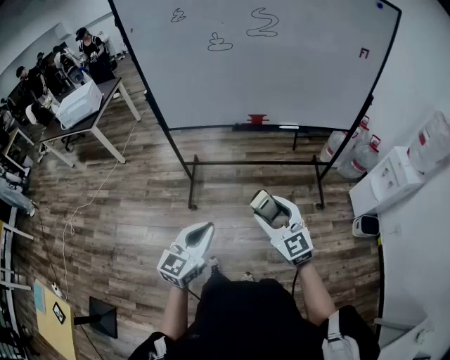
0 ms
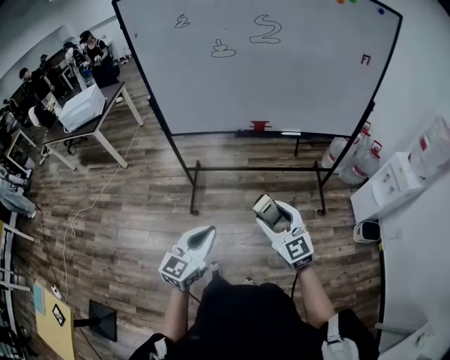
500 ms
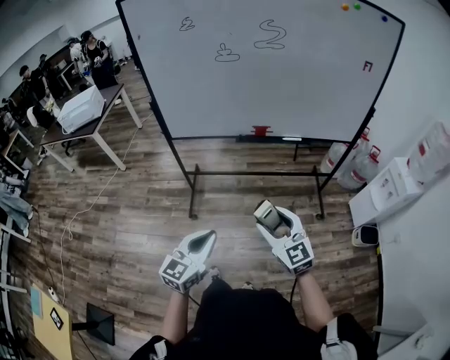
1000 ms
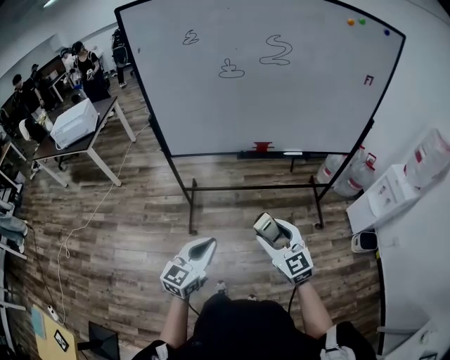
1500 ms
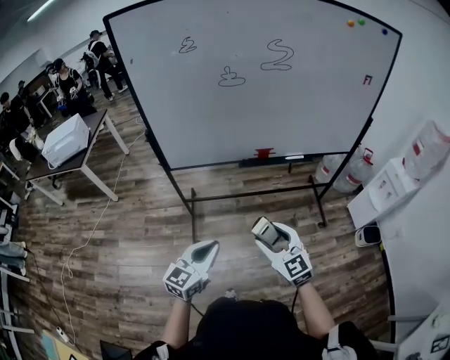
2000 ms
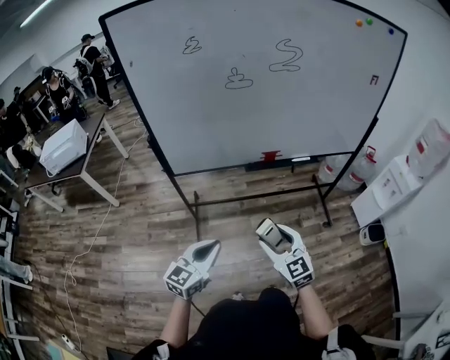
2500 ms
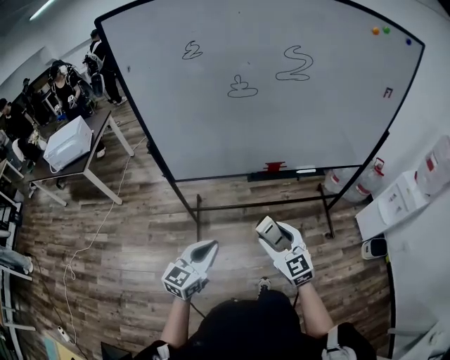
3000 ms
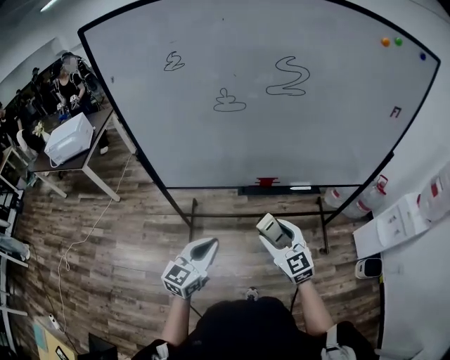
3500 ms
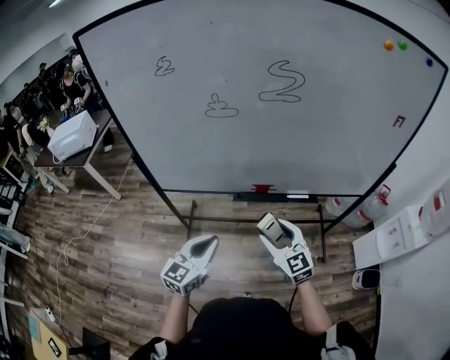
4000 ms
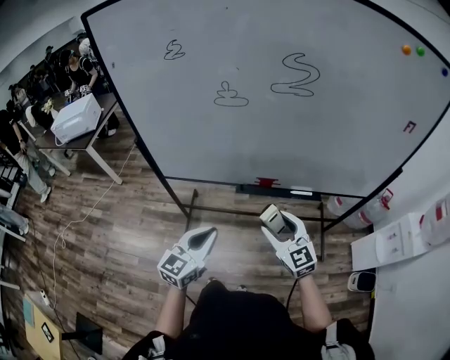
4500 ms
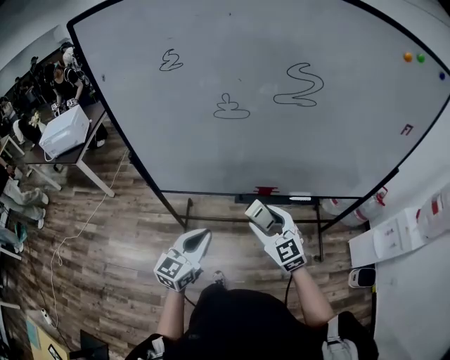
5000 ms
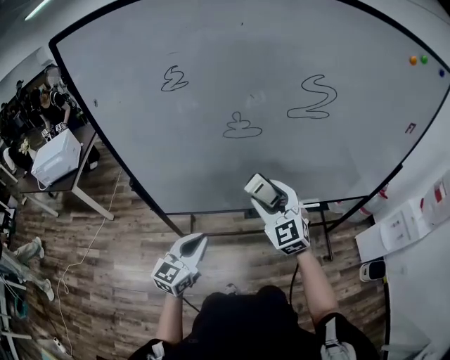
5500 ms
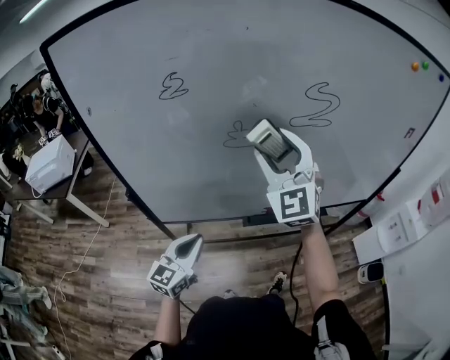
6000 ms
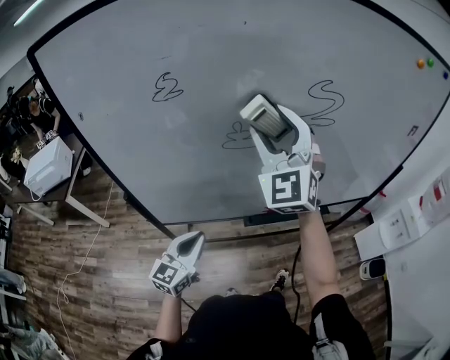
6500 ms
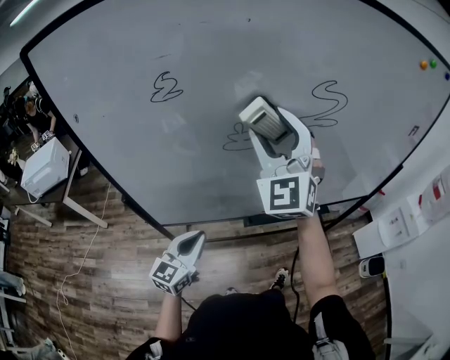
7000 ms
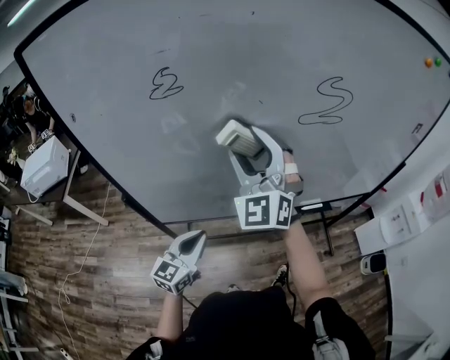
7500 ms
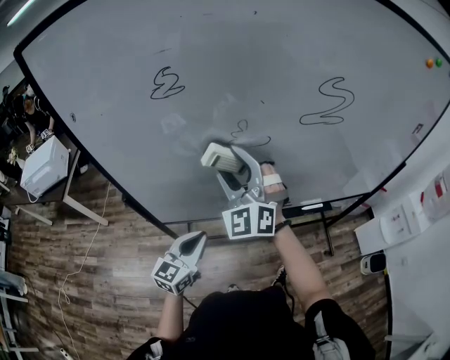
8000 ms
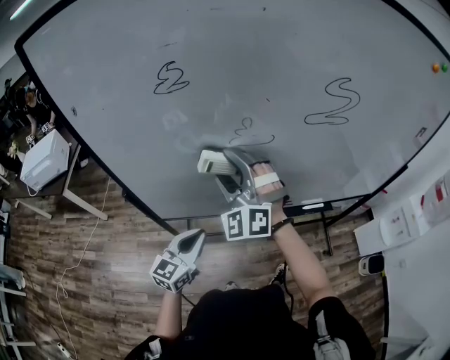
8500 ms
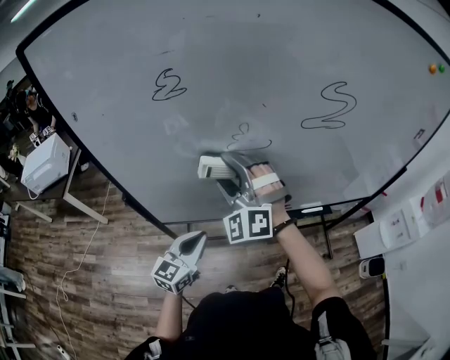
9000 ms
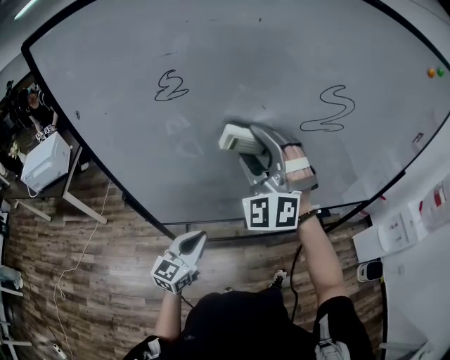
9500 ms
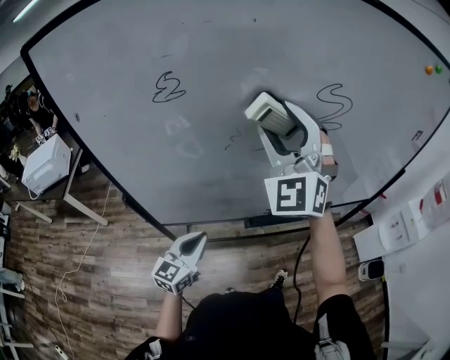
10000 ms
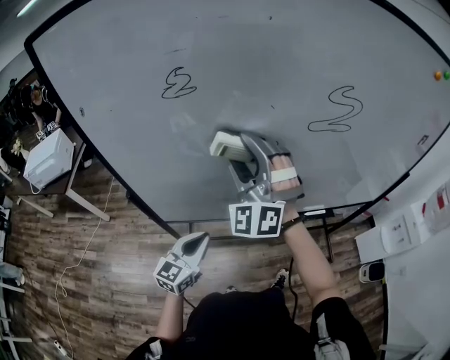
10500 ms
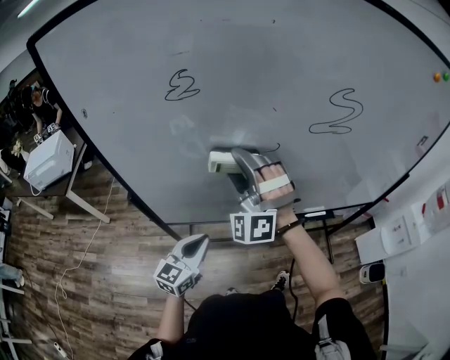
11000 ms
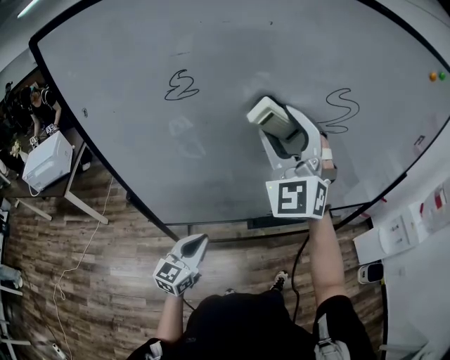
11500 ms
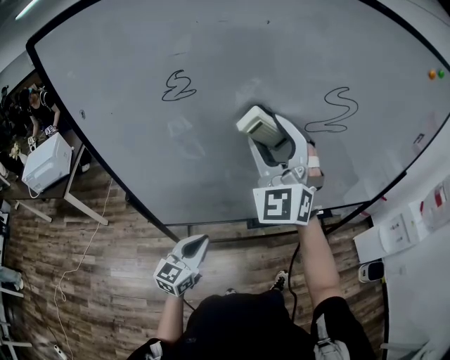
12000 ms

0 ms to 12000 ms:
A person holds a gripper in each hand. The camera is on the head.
0 ms to 2000 ms: The right gripper travels to the left and forward by about 15 cm. The left gripper goes roughly 15 cm forward and to the left.
2000 ms to 4000 ms: The two grippers go roughly 25 cm forward and to the right.
4000 ms to 6000 ms: The right gripper heads upward, forward and to the left, covering about 35 cm, and rotates some 40 degrees. The left gripper shifts about 20 cm forward and to the left.
6000 ms to 8000 ms: The right gripper travels to the left and downward by roughly 15 cm.
8000 ms to 10000 ms: The right gripper heads upward and to the right, covering roughly 15 cm.
10000 ms to 12000 ms: The right gripper moves roughly 15 cm downward and comes back.

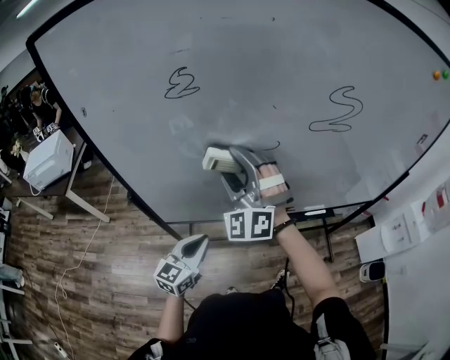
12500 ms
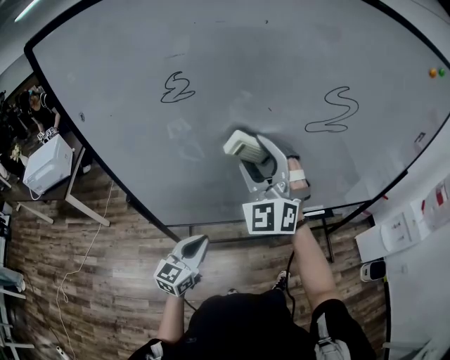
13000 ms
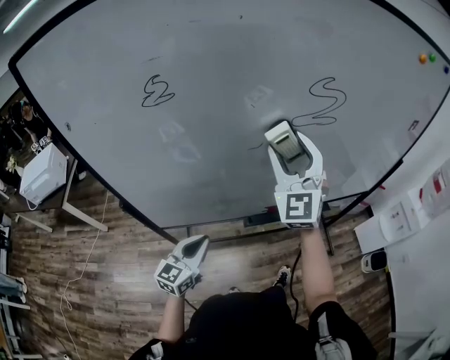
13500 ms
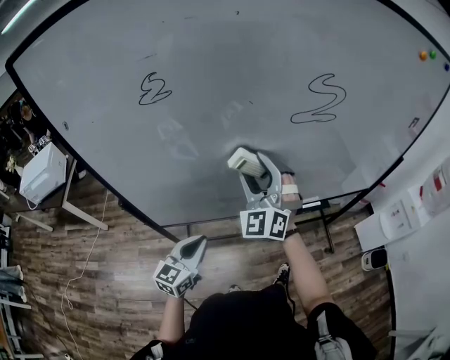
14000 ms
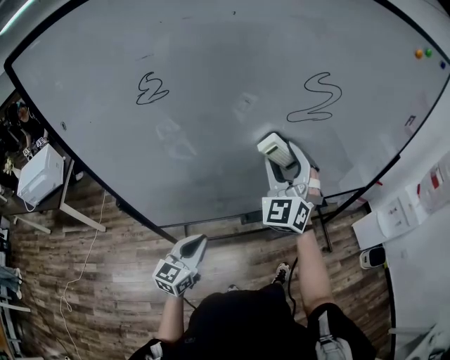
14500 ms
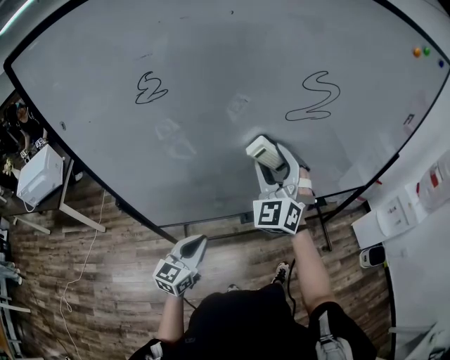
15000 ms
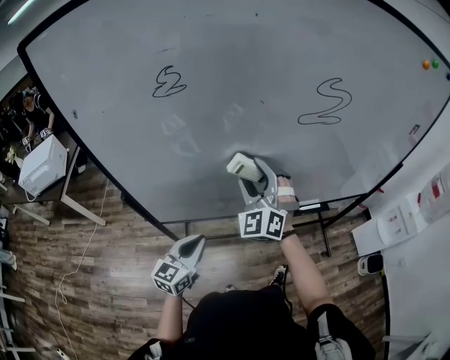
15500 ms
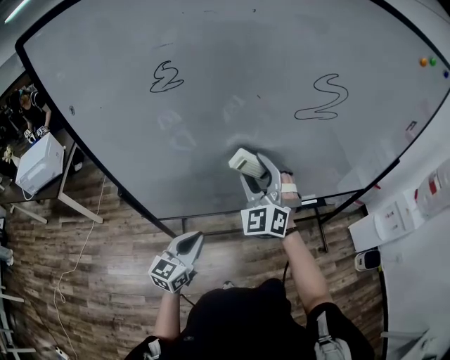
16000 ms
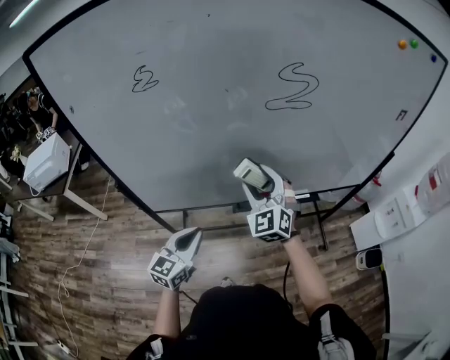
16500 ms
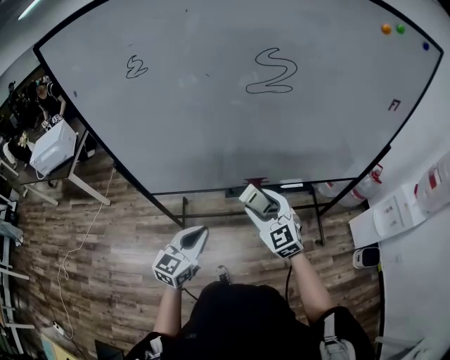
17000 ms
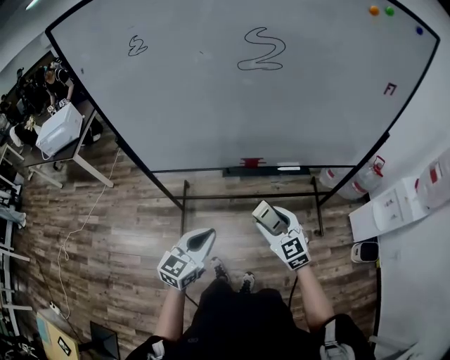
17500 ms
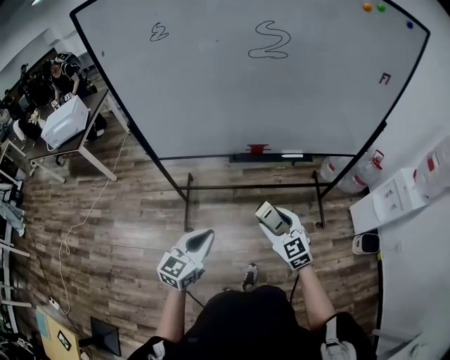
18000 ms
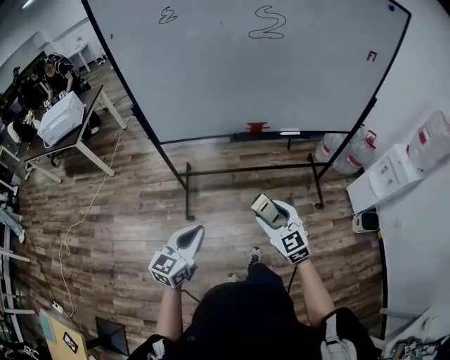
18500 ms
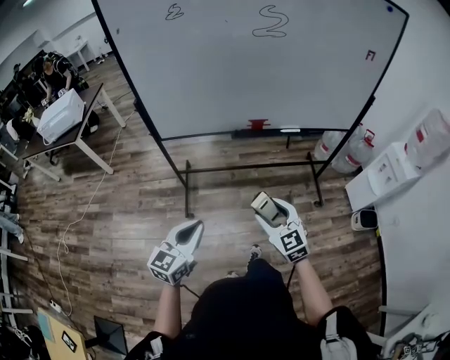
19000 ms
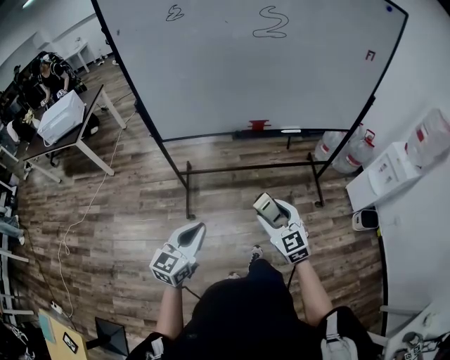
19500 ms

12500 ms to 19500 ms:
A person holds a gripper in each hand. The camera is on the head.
12500 ms to 14500 ms: The right gripper goes left and right, about 15 cm each way, reversing 2 times, and turns by approximately 30 degrees.
14500 ms to 16000 ms: The right gripper goes some 10 cm to the left.
16000 ms to 17500 ms: The right gripper shifts roughly 40 cm backward, to the right and downward, and changes its angle by approximately 50 degrees. The left gripper shifts about 25 cm to the right and backward.
17500 ms to 19500 ms: The grippers both shift backward and to the left by roughly 20 cm.

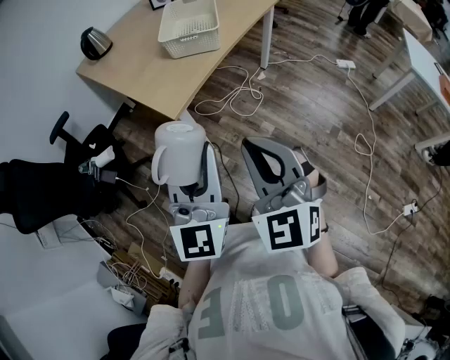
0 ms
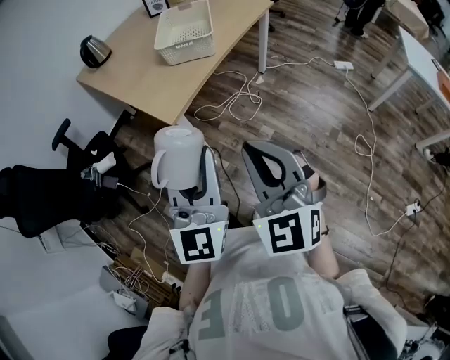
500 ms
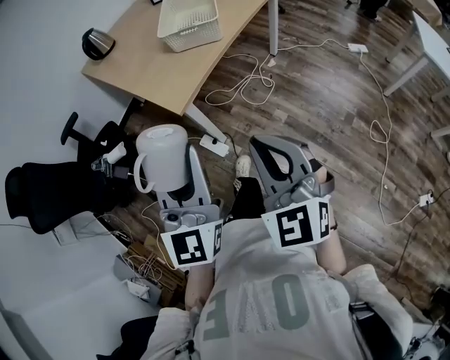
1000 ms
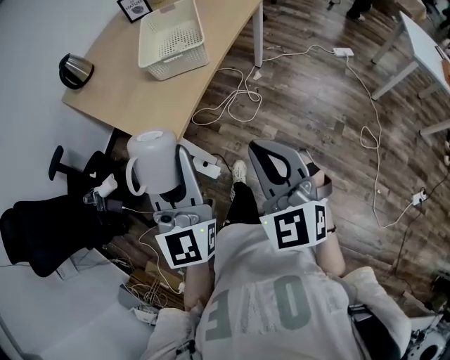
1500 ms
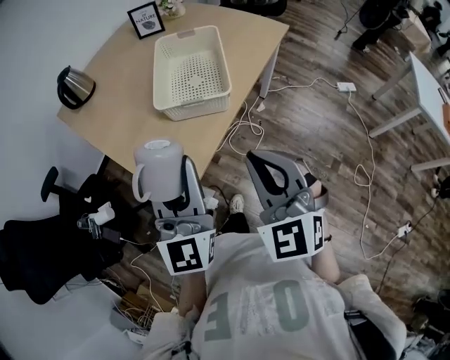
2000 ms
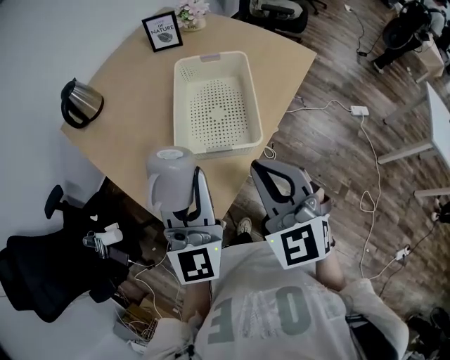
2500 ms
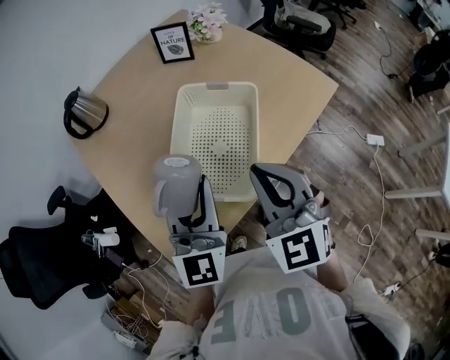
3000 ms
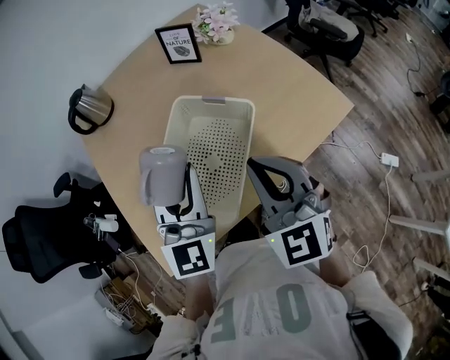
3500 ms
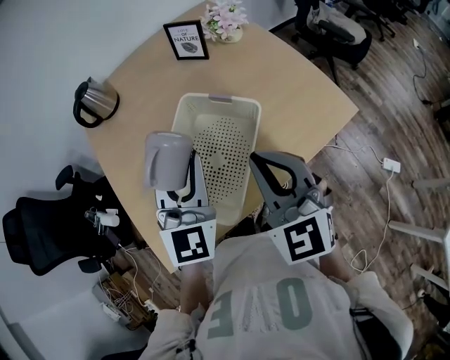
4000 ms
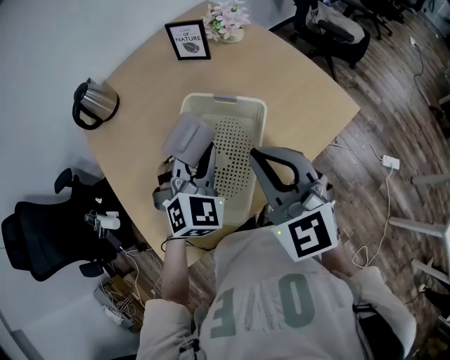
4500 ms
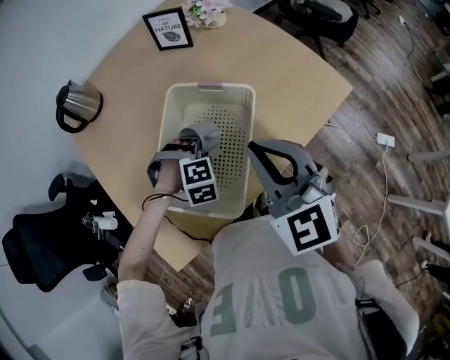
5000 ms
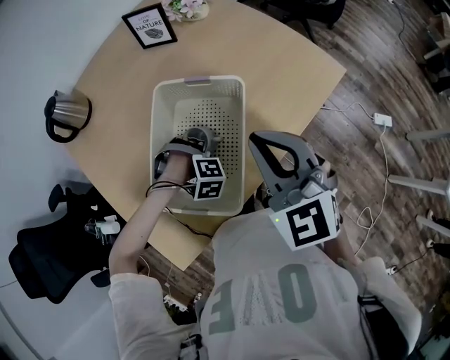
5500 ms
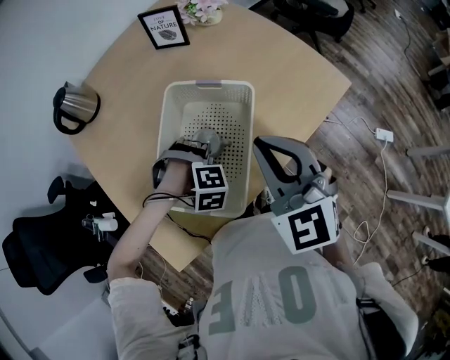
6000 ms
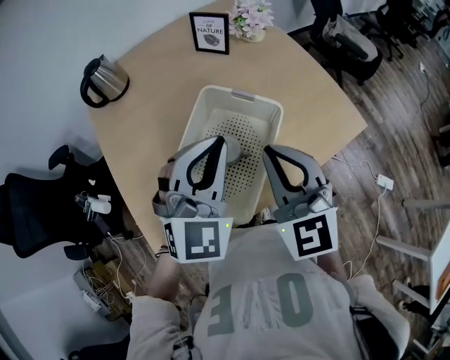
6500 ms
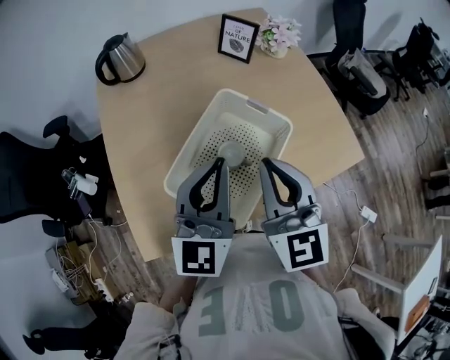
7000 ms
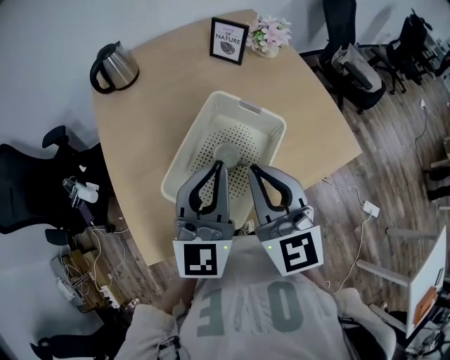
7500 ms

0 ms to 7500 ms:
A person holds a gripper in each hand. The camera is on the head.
0 ms to 2000 ms: The grippers both shift forward by about 30 cm.
2000 ms to 4000 ms: The left gripper travels forward and to the right by about 40 cm, and changes its angle by about 30 degrees. The right gripper moves forward, roughly 35 cm, and swivels roughly 30 degrees.
4000 ms to 5500 ms: The left gripper shifts about 30 cm downward, and angles its fingers downward, by some 70 degrees.
5500 ms to 7500 ms: The right gripper moves roughly 10 cm, and changes its angle by some 20 degrees. The left gripper moves upward, about 30 cm, and tilts its fingers approximately 80 degrees upward.
